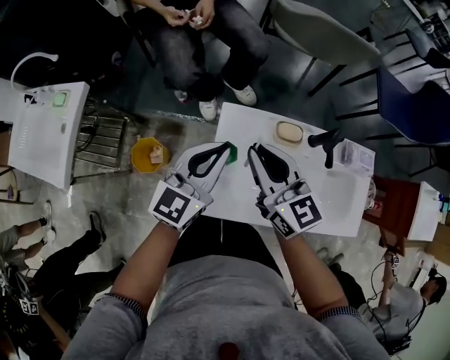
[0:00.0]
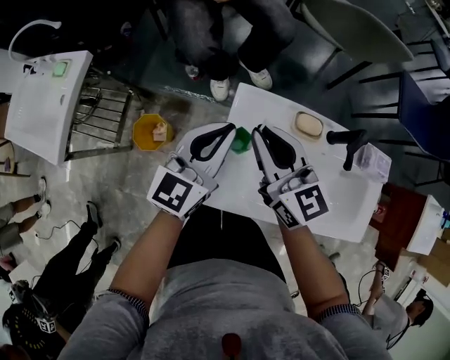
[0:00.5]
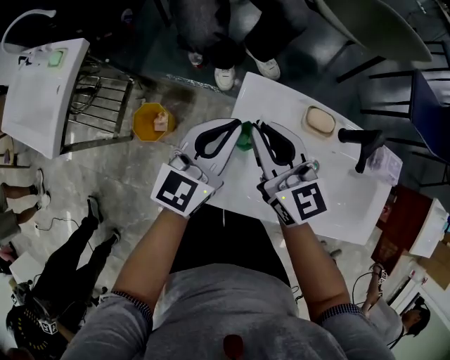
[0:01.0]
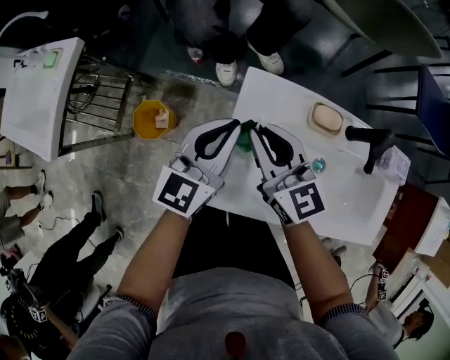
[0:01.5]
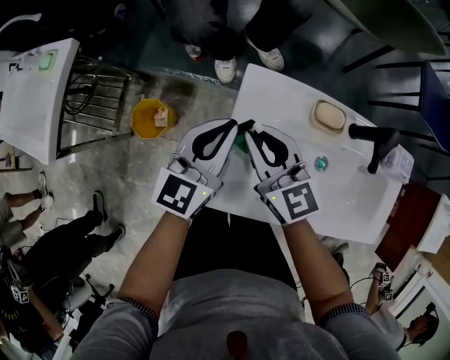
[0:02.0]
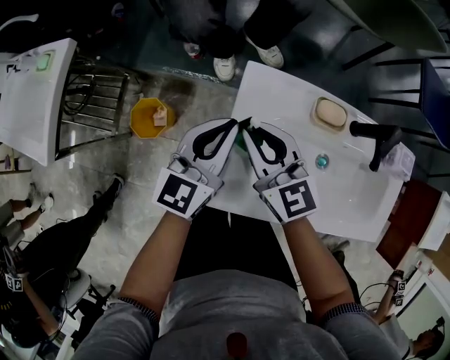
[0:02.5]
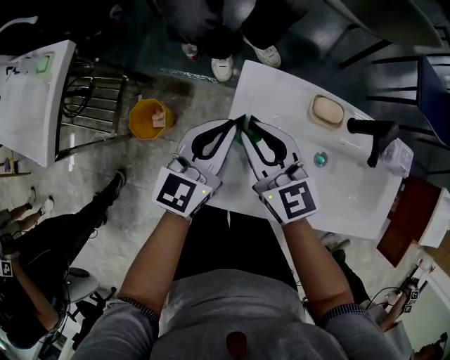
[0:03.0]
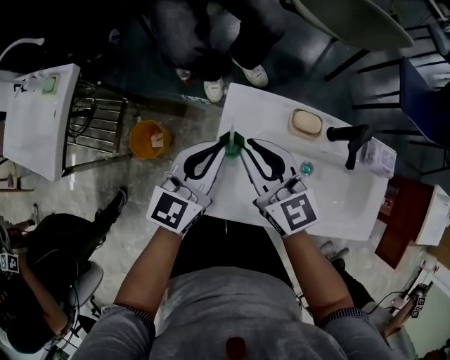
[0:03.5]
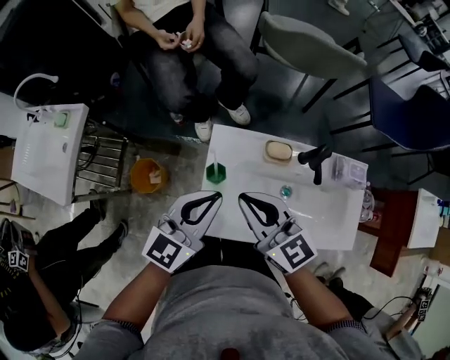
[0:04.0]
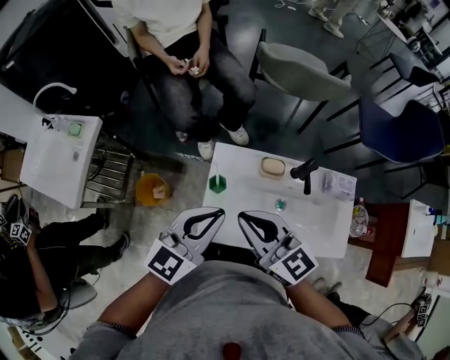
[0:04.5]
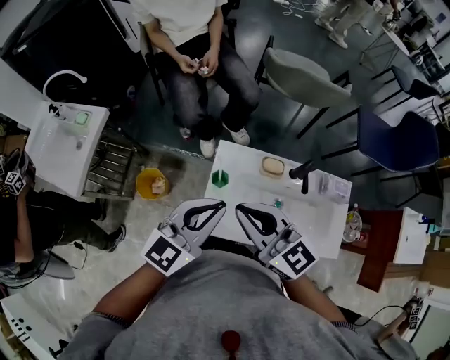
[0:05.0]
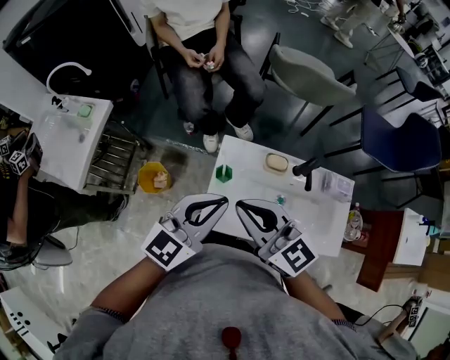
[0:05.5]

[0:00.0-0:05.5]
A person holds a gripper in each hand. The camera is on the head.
0:00.0 to 0:02.0: Both grippers move downward, approximately 15 cm.
0:02.0 to 0:03.5: The right gripper is displaced upward by approximately 5 cm.
0:03.5 to 0:05.5: The two grippers go approximately 25 cm upward and backward.

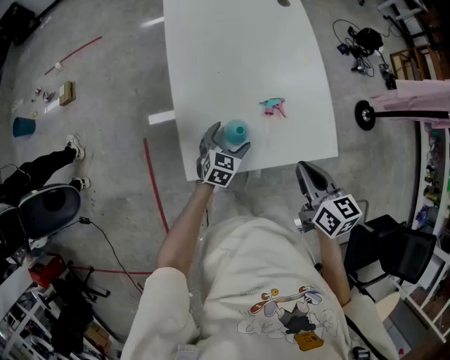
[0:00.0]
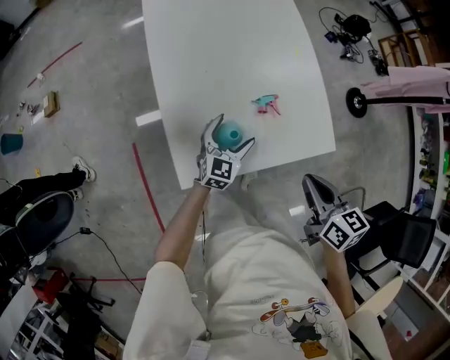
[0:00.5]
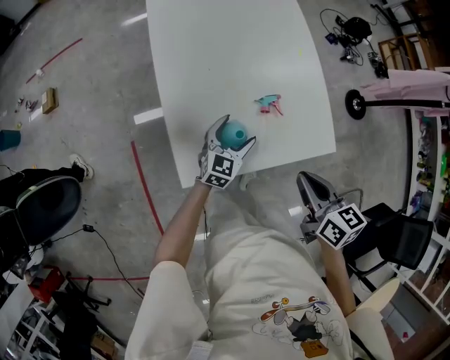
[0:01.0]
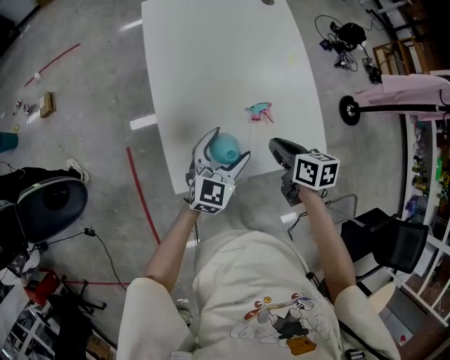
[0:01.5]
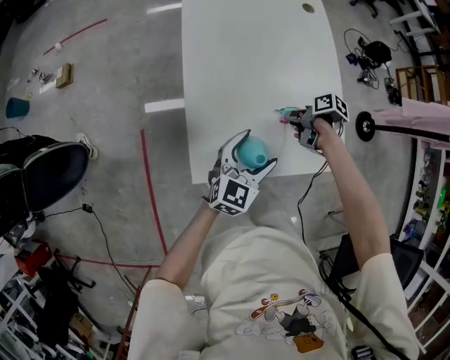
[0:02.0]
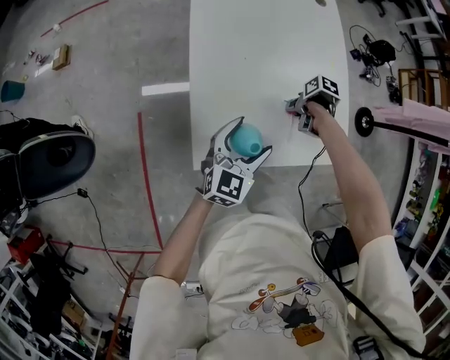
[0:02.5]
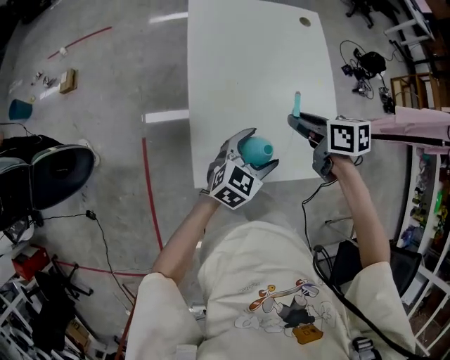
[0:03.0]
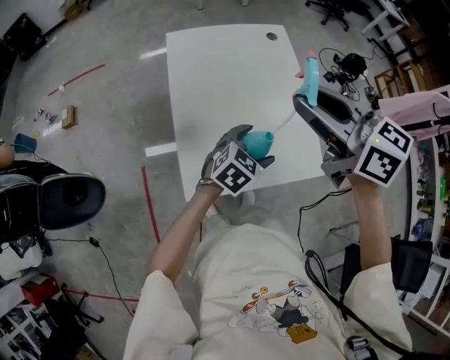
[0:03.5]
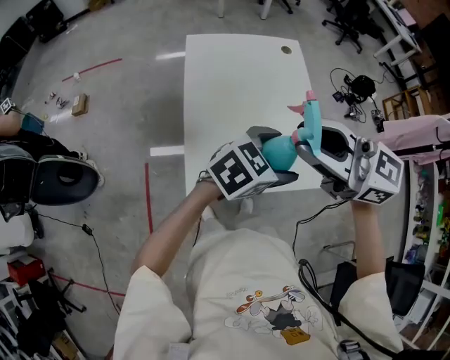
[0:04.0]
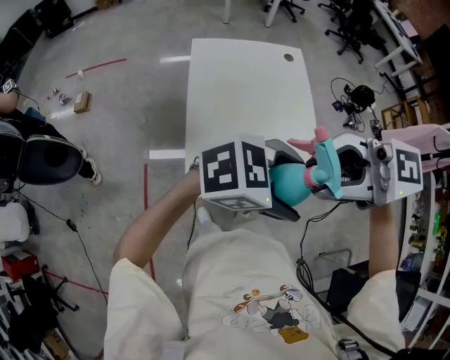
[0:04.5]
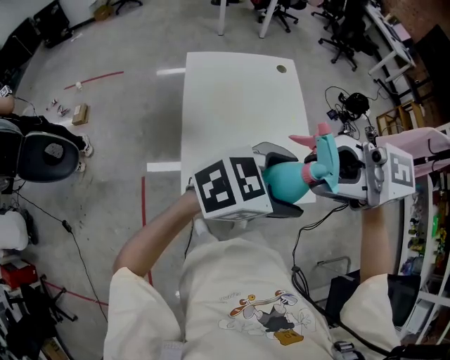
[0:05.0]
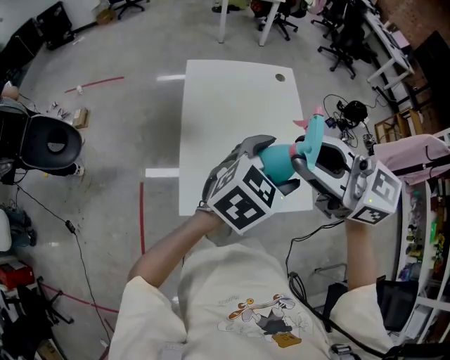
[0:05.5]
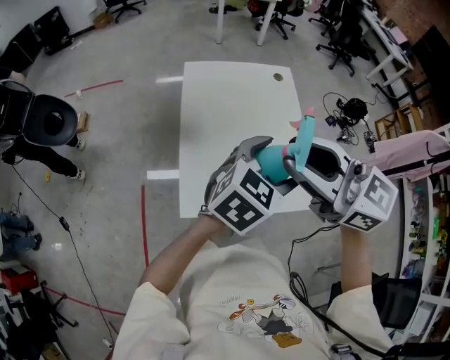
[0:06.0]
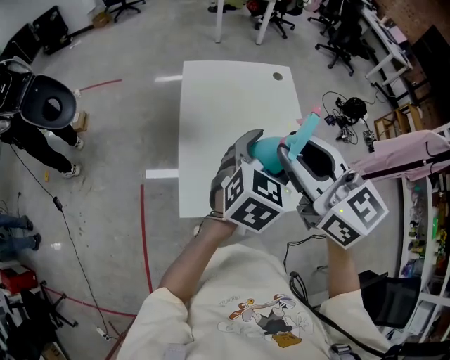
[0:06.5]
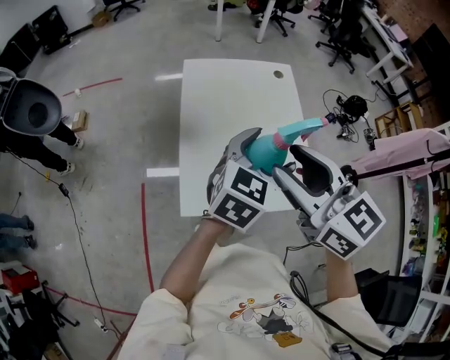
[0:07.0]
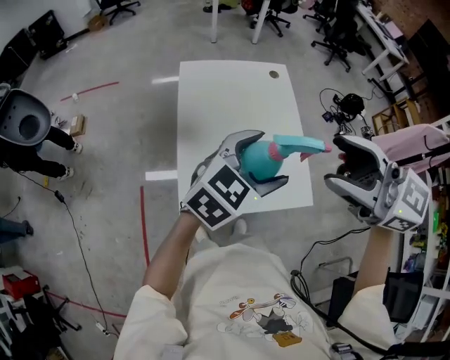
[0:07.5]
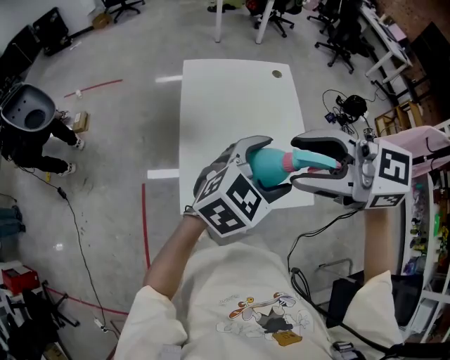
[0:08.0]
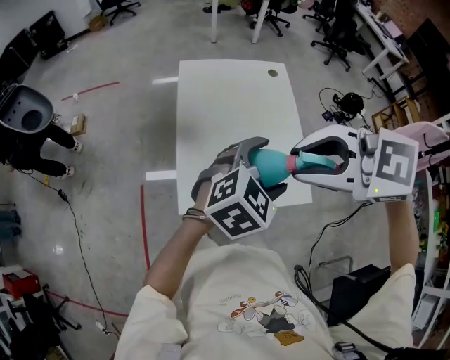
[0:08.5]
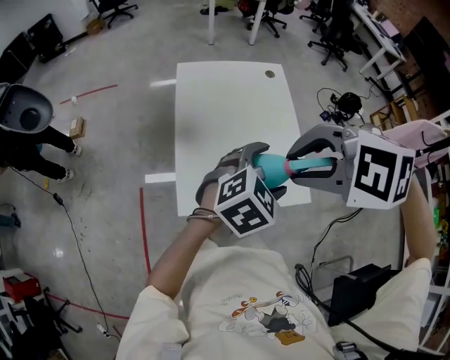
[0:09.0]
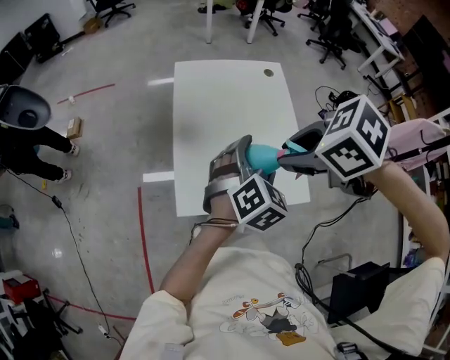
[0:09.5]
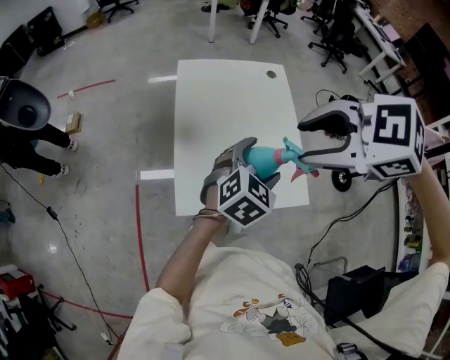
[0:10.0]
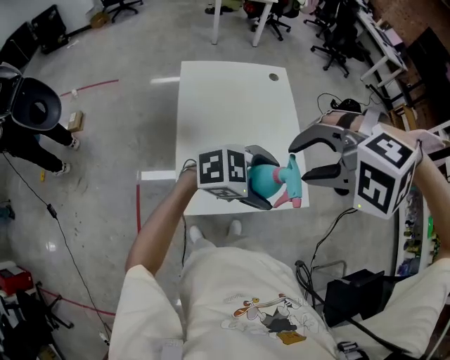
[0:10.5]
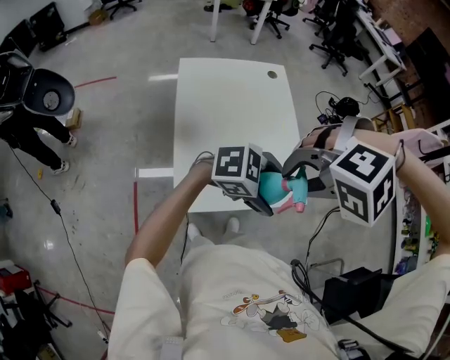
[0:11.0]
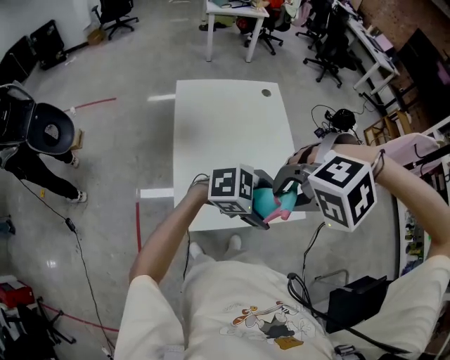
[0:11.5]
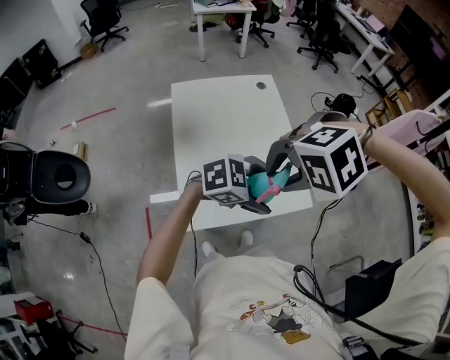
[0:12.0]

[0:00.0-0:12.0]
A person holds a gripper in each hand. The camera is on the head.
0:00.0 to 0:02.0: The right gripper moves downward, about 20 cm, turns by some 60 degrees, and opens its fingers. The left gripper moves upward, approximately 10 cm.
0:02.0 to 0:04.0: The right gripper heads upward, covering some 50 cm, and twists roughly 80 degrees counterclockwise, seen from behind. Meanwhile the left gripper is displaced upward by some 20 cm, and swivels approximately 30 degrees.
0:04.0 to 0:06.0: The left gripper shifts about 5 cm upward.
0:06.0 to 0:08.0: The right gripper turns by roughly 20 degrees, and opens up.
0:08.0 to 0:10.0: The left gripper shifts roughly 10 cm downward; the right gripper travels downward and back again, roughly 10 cm each way, and tips its fingers downward by some 40 degrees.
0:10.0 to 0:12.0: The left gripper shifts by some 10 cm, and swivels roughly 60 degrees; the right gripper is displaced downward by about 5 cm, and changes its angle by about 40 degrees.

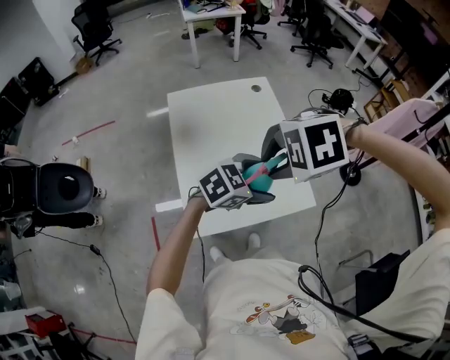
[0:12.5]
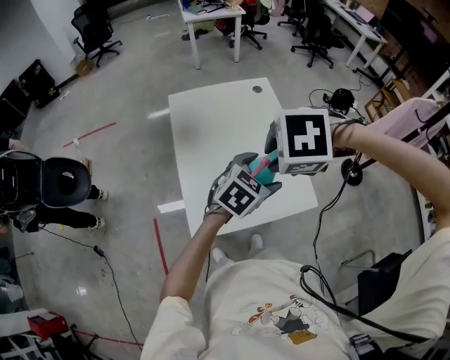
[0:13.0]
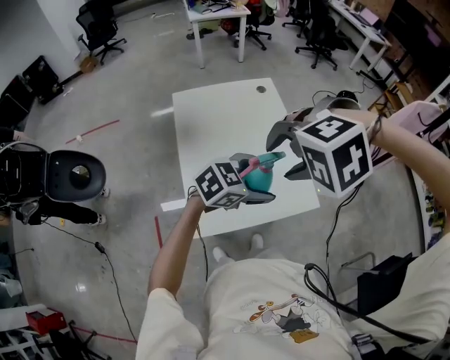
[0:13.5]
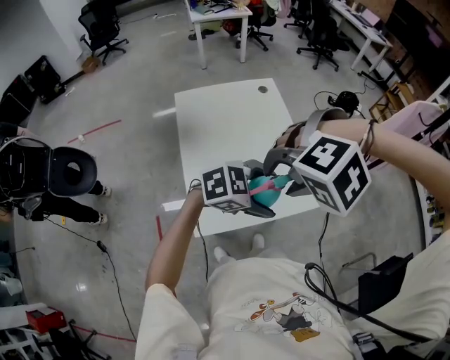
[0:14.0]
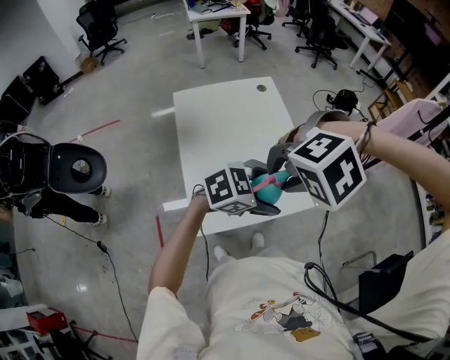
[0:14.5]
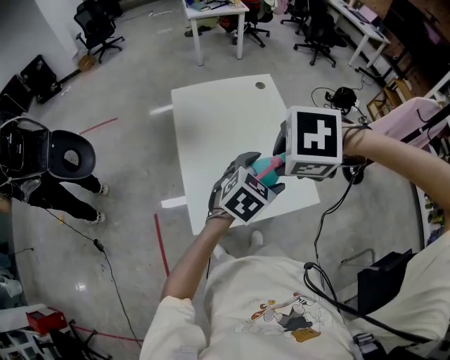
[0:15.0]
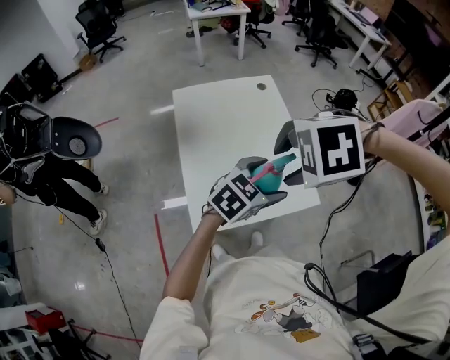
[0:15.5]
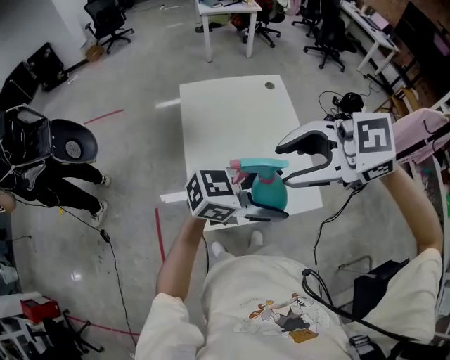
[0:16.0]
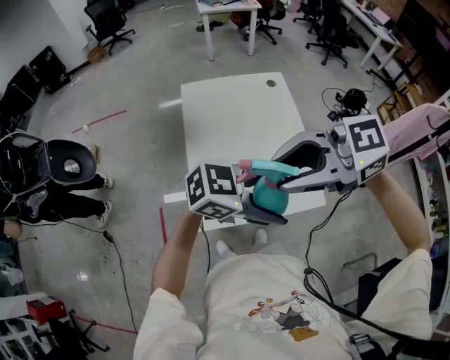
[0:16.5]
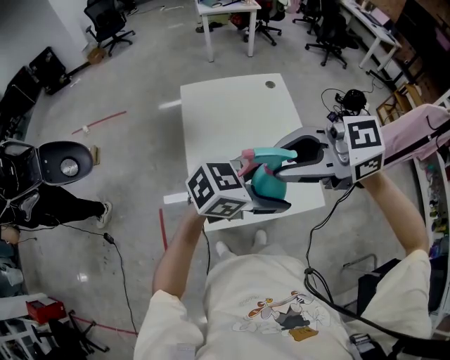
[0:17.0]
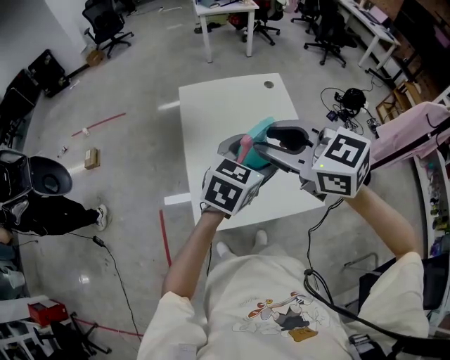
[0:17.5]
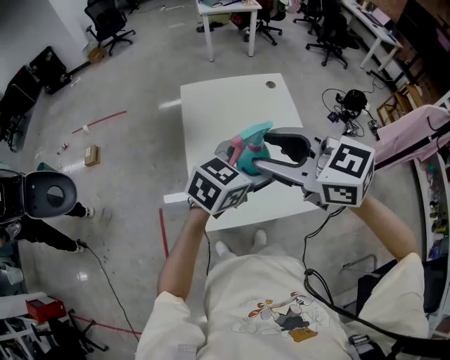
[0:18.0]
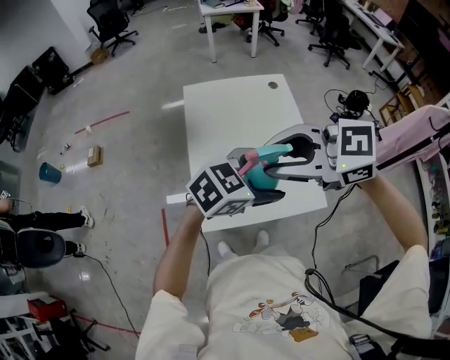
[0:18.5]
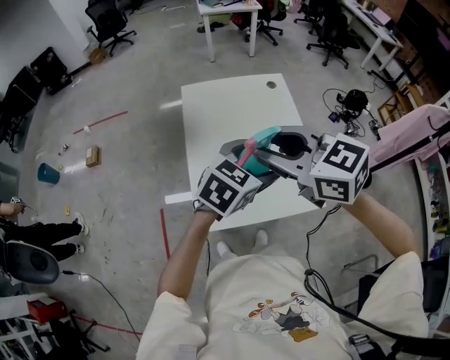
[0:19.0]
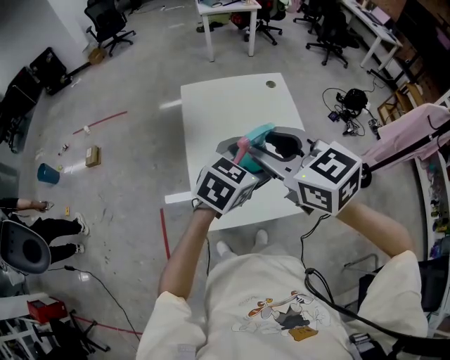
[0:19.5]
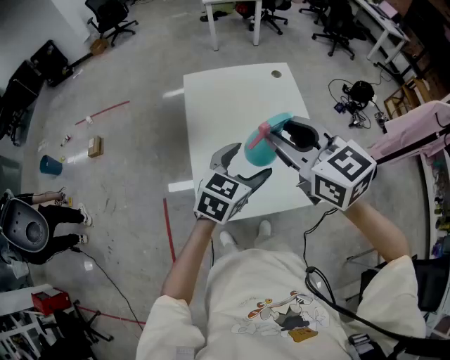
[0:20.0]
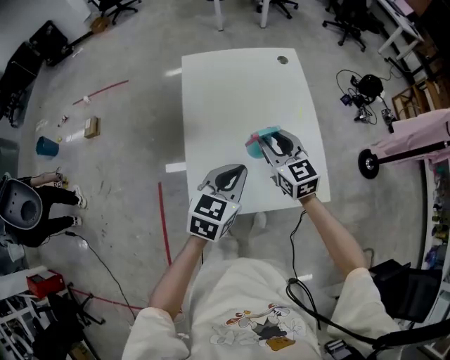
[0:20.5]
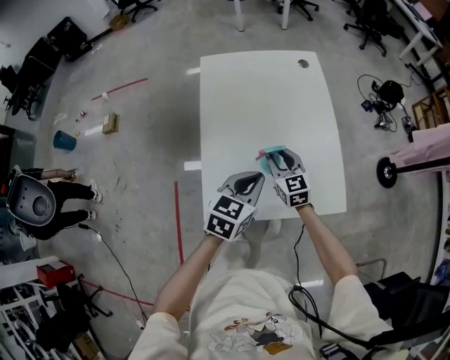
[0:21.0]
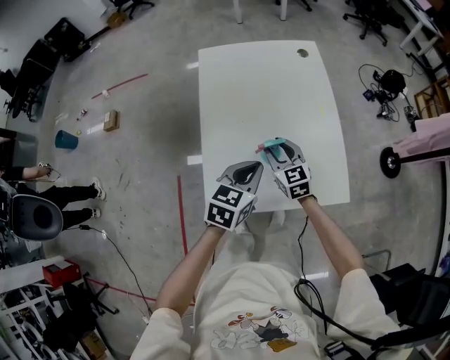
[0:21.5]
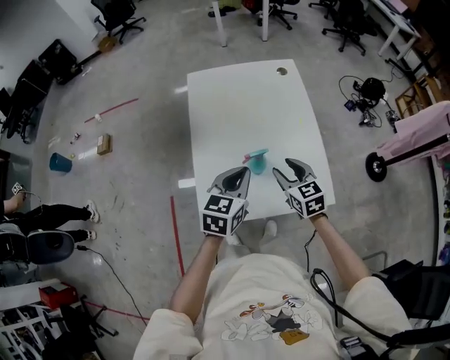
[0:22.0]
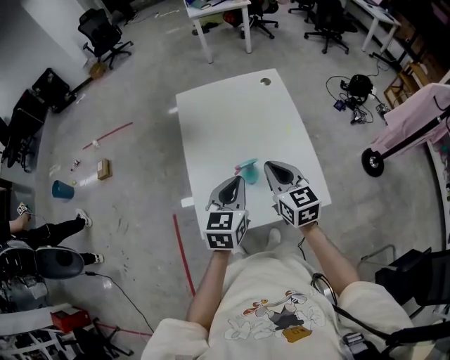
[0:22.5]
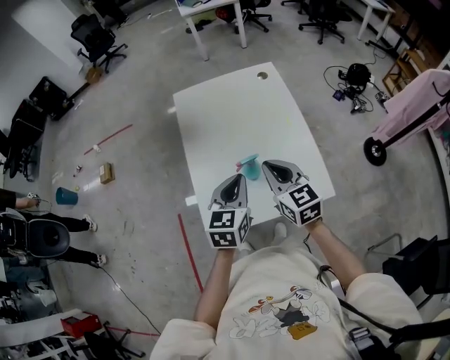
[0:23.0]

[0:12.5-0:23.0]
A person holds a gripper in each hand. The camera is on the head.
0:12.5 to 0:14.5: The left gripper moves some 5 cm. The right gripper rotates some 20 degrees.
0:14.5 to 0:16.5: The grippers both shift upward by some 10 cm. The right gripper tips its fingers upward by approximately 70 degrees.
0:16.5 to 0:19.0: The left gripper changes place by roughly 10 cm, and changes its angle by roughly 50 degrees. The right gripper changes place by some 10 cm, and rotates about 40 degrees.
0:19.0 to 0:21.0: The left gripper is displaced downward by roughly 15 cm, and closes; the right gripper shifts roughly 35 cm downward, and turns by about 30 degrees.
0:21.0 to 0:23.0: The right gripper heads upward and backward, covering roughly 20 cm, and closes its fingers. The left gripper is displaced upward by some 5 cm.
